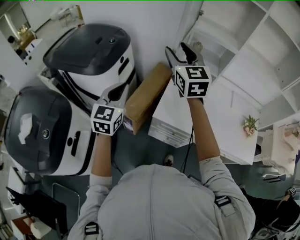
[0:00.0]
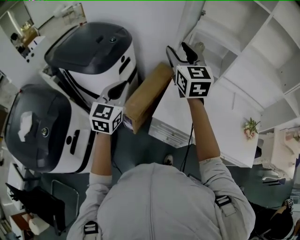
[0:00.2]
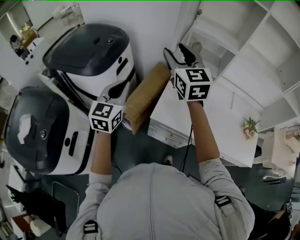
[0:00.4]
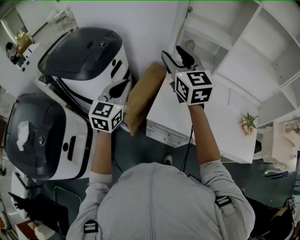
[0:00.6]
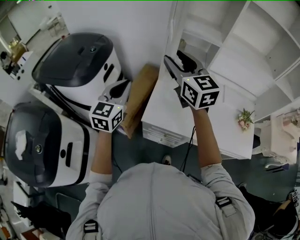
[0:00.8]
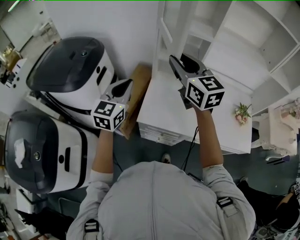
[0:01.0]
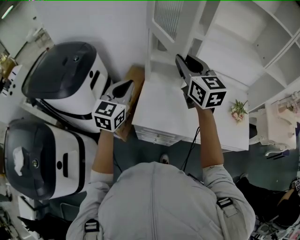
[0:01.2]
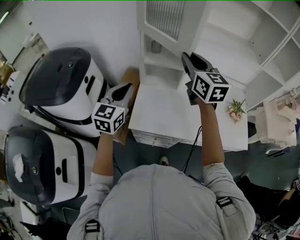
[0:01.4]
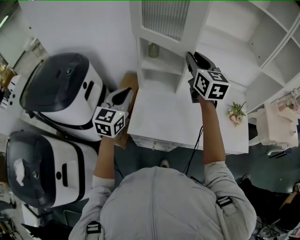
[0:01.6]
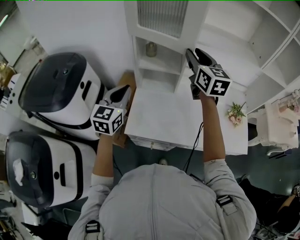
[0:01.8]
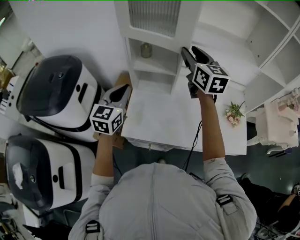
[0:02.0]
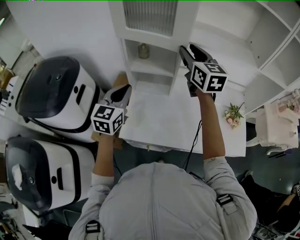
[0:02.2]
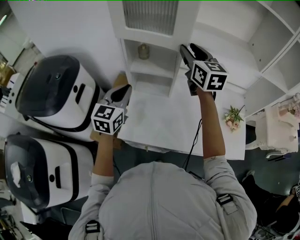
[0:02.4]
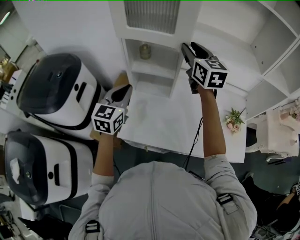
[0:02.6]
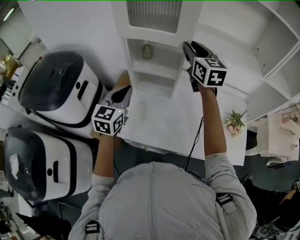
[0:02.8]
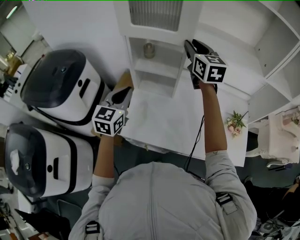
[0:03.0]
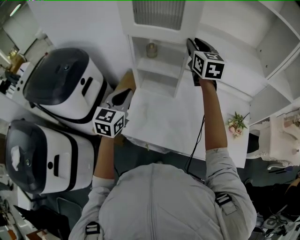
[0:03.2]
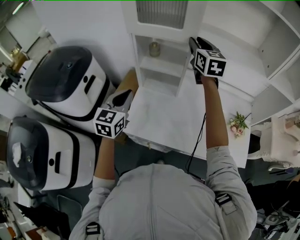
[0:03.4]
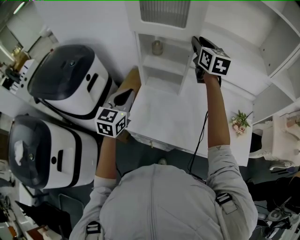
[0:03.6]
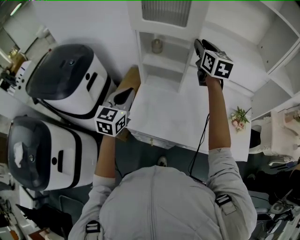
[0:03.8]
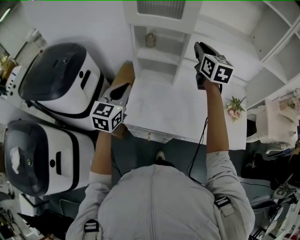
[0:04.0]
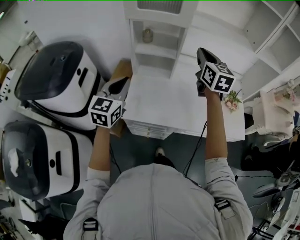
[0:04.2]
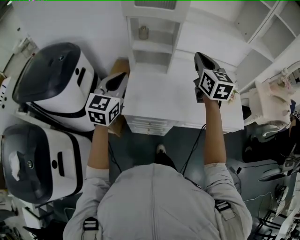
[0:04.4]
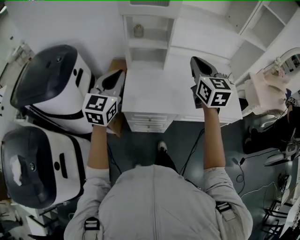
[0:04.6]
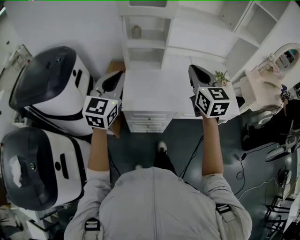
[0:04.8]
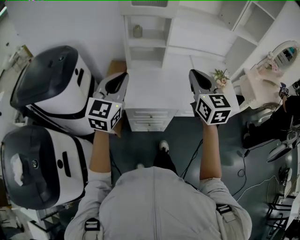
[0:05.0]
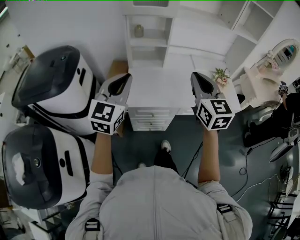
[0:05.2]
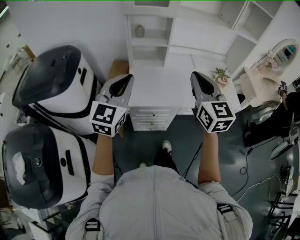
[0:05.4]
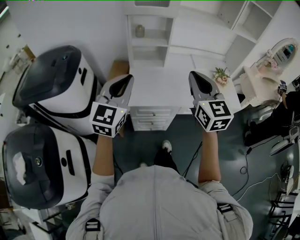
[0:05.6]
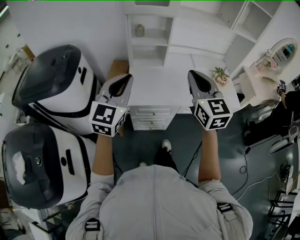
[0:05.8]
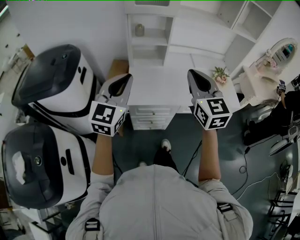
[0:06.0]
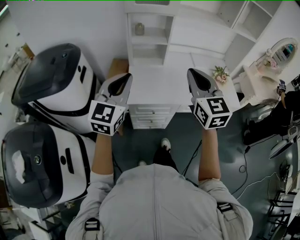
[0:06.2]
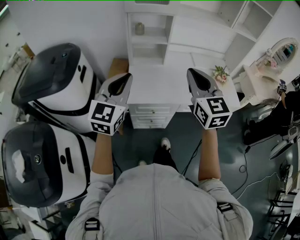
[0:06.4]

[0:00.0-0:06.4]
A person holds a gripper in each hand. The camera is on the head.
0:00.0 to 0:01.6: The left gripper heads to the right and forward, covering roughly 25 cm; the right gripper goes approximately 30 cm to the right, turns by roughly 20 degrees, and closes its fingers.
0:01.6 to 0:03.2: The left gripper changes place by about 5 cm; the right gripper is displaced forward by roughly 10 cm.
0:03.2 to 0:04.8: The left gripper moves backward, approximately 15 cm; the right gripper heads backward, covering some 35 cm, and closes up.
0:04.8 to 0:06.4: The grippers both shift backward by some 10 cm.

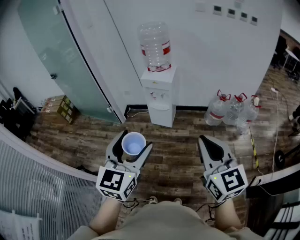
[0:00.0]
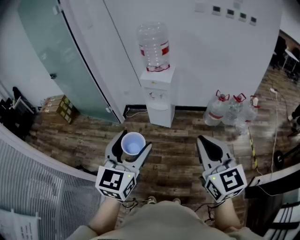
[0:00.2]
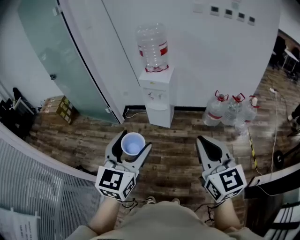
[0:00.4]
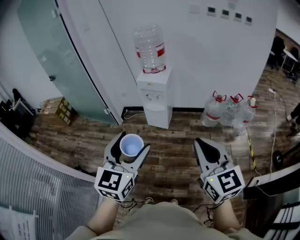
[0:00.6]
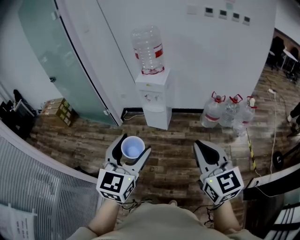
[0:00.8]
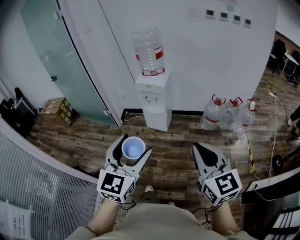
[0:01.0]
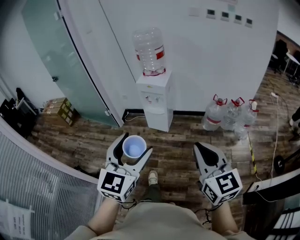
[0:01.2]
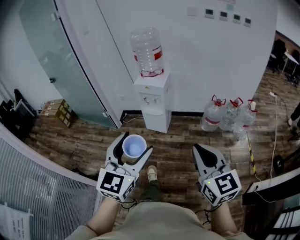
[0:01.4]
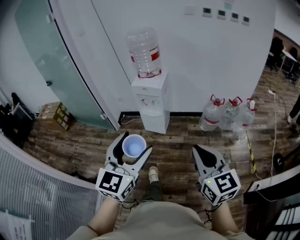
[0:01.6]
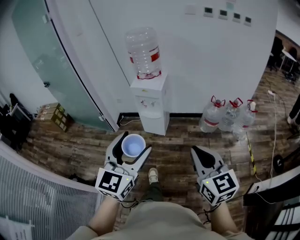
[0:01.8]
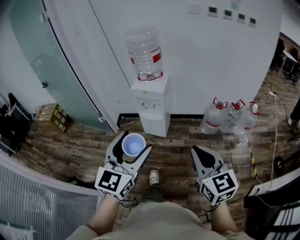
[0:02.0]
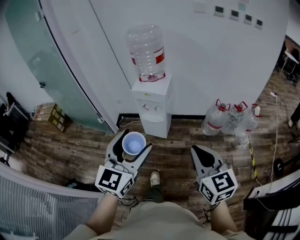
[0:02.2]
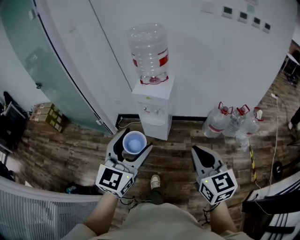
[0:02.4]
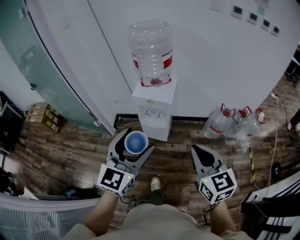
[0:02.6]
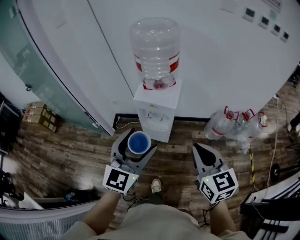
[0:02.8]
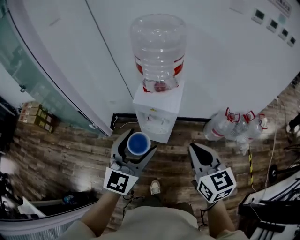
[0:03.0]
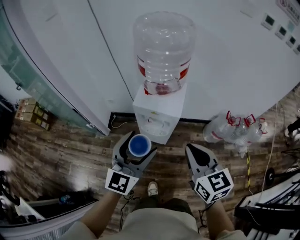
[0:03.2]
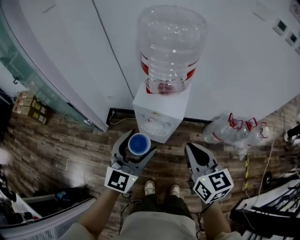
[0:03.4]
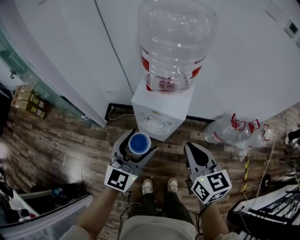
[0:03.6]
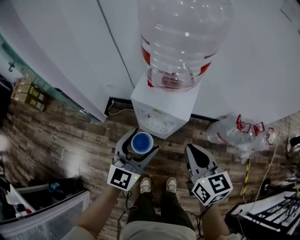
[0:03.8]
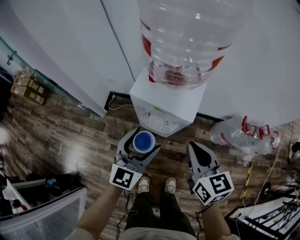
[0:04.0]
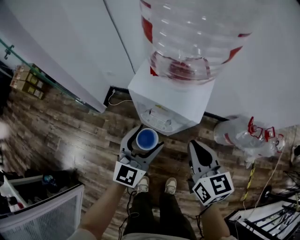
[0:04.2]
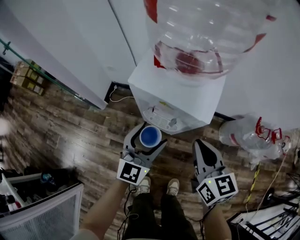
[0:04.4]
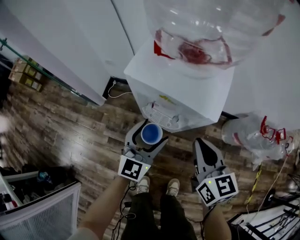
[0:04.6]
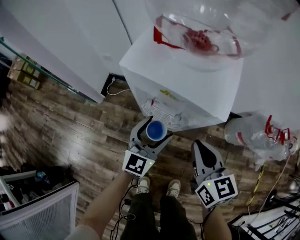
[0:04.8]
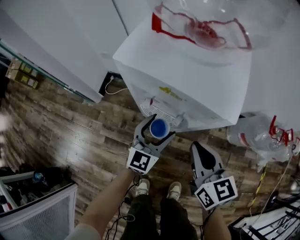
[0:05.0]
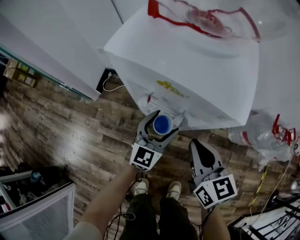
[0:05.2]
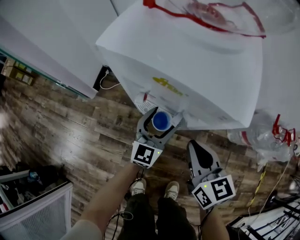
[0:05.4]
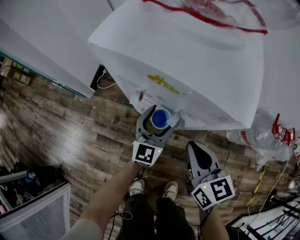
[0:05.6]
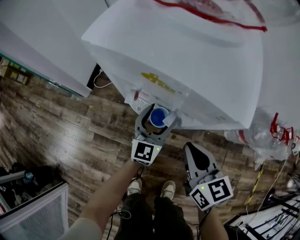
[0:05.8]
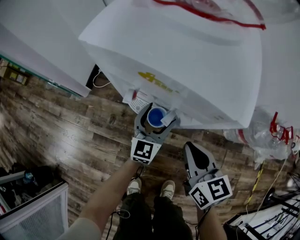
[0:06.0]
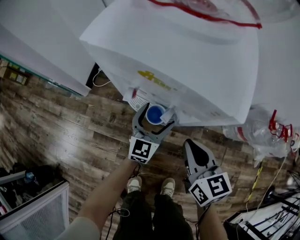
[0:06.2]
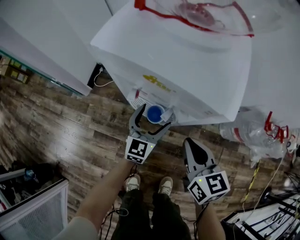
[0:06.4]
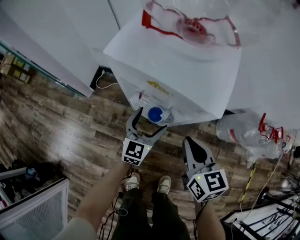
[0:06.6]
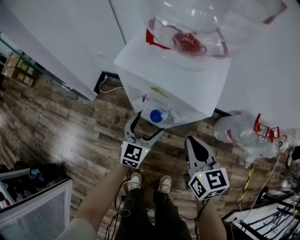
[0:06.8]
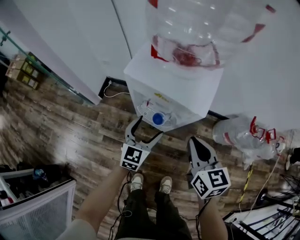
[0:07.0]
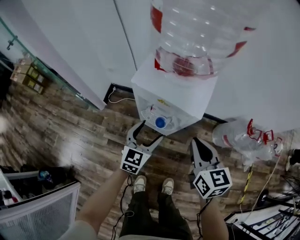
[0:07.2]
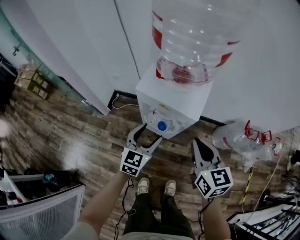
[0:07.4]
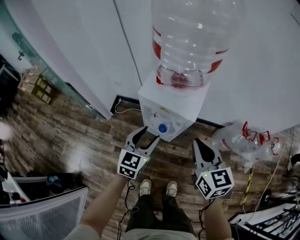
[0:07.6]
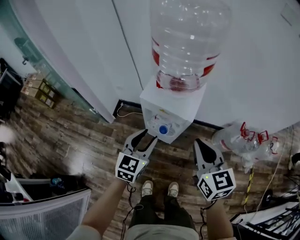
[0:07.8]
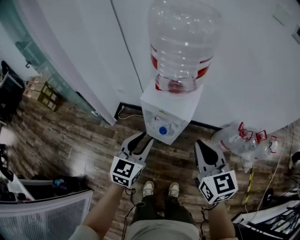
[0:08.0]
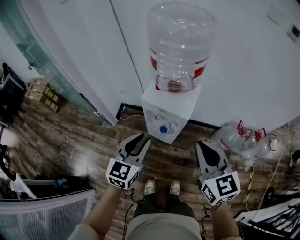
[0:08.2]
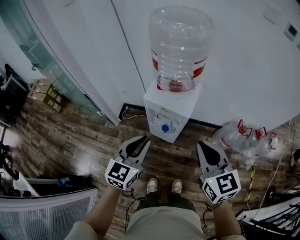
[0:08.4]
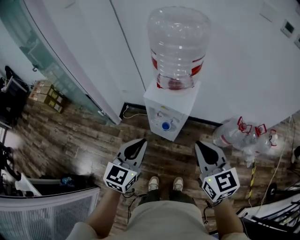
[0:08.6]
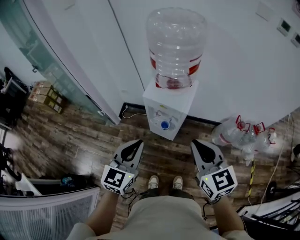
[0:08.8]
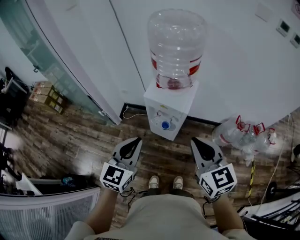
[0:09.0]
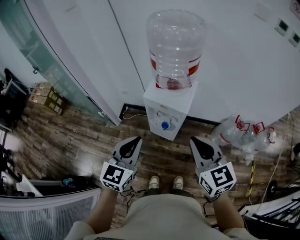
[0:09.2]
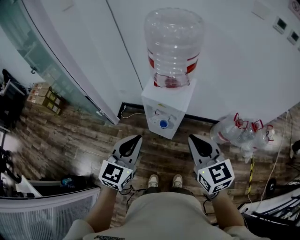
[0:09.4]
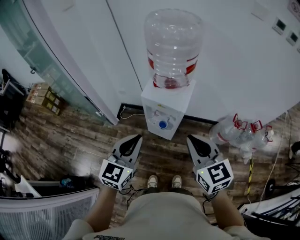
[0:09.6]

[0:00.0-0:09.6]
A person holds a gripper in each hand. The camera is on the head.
0:00.0 to 0:01.6: The left gripper goes roughly 10 cm to the right; the right gripper moves to the right and downward, about 10 cm.
0:01.6 to 0:03.2: The pair of grippers is taken forward, some 50 cm.
0:03.2 to 0:04.8: The right gripper moves downward and forward, approximately 40 cm. The left gripper is displaced downward by roughly 40 cm.
0:04.8 to 0:06.4: The grippers both shift downward by approximately 10 cm.
0:06.4 to 0:08.0: The two grippers go some 40 cm upward. The left gripper closes its fingers.
0:08.0 to 0:09.6: The left gripper shifts roughly 15 cm upward and backward; the right gripper shifts about 10 cm backward and upward.

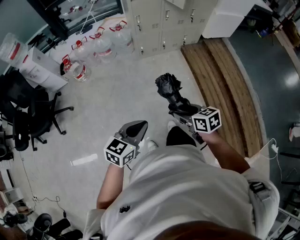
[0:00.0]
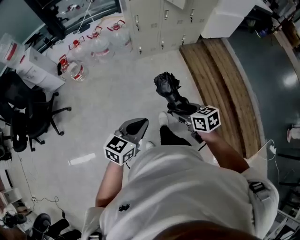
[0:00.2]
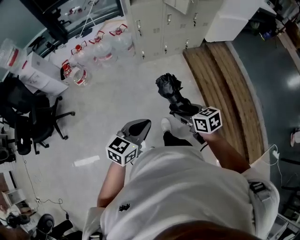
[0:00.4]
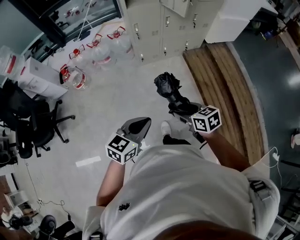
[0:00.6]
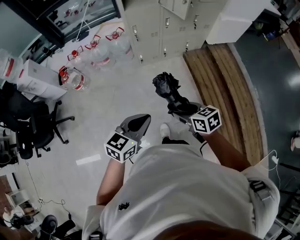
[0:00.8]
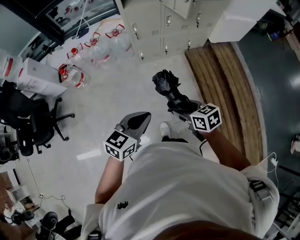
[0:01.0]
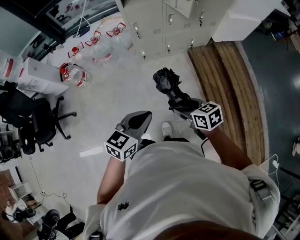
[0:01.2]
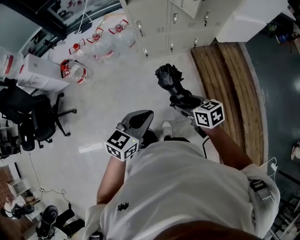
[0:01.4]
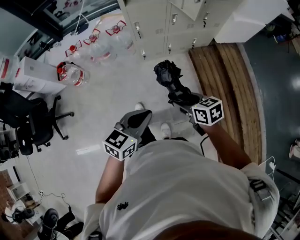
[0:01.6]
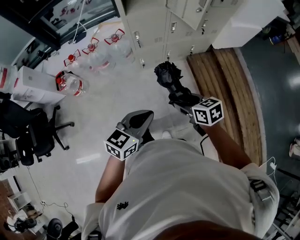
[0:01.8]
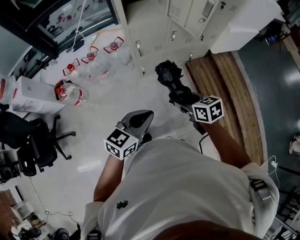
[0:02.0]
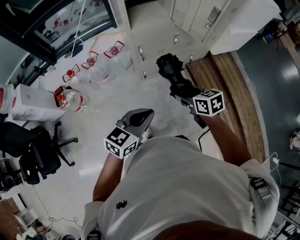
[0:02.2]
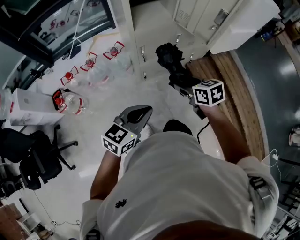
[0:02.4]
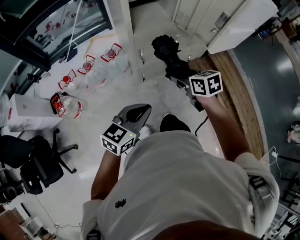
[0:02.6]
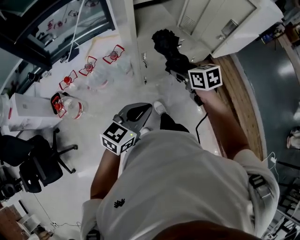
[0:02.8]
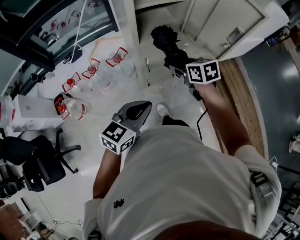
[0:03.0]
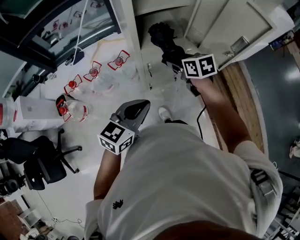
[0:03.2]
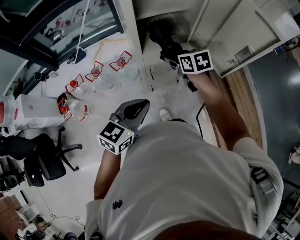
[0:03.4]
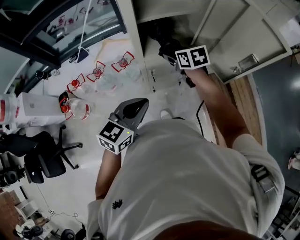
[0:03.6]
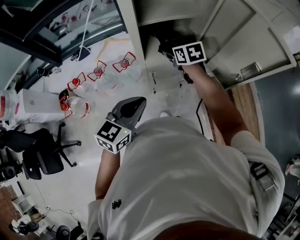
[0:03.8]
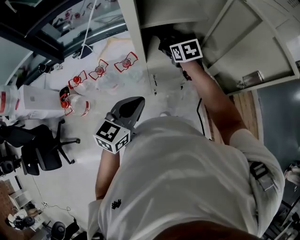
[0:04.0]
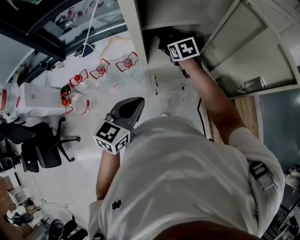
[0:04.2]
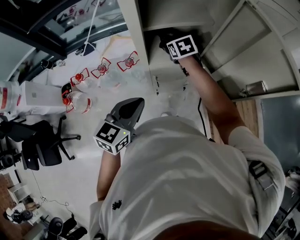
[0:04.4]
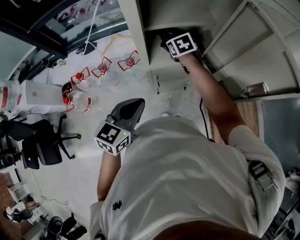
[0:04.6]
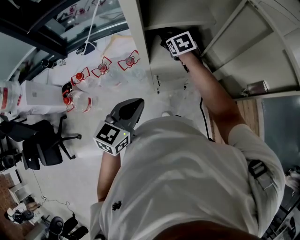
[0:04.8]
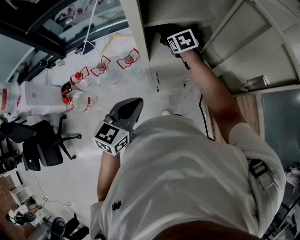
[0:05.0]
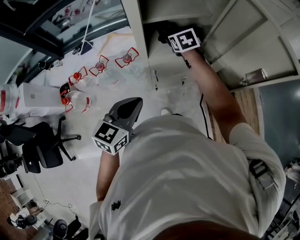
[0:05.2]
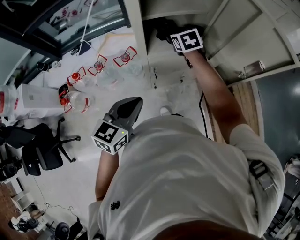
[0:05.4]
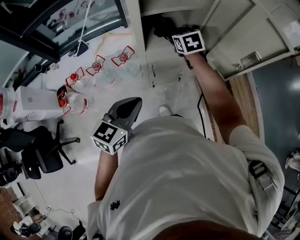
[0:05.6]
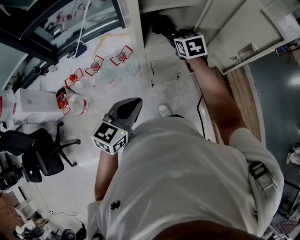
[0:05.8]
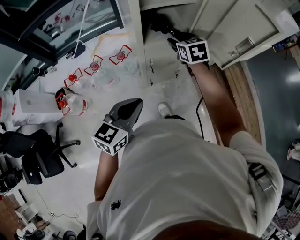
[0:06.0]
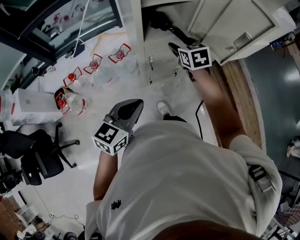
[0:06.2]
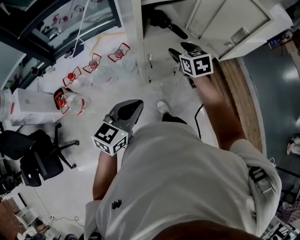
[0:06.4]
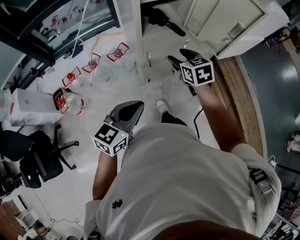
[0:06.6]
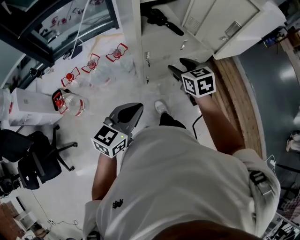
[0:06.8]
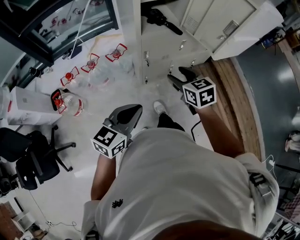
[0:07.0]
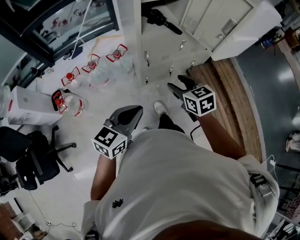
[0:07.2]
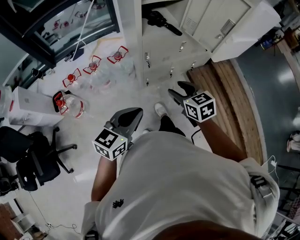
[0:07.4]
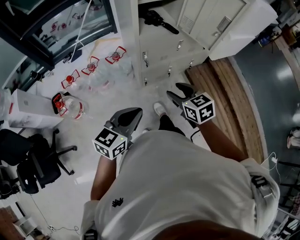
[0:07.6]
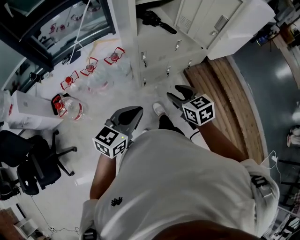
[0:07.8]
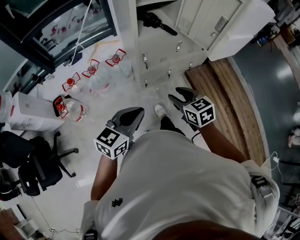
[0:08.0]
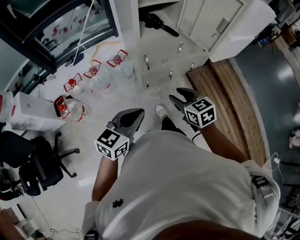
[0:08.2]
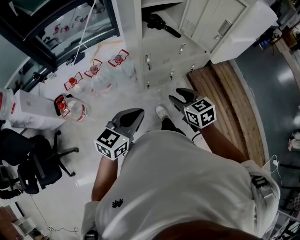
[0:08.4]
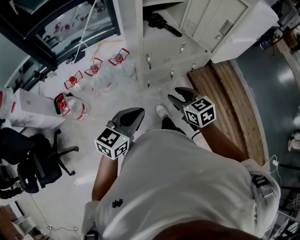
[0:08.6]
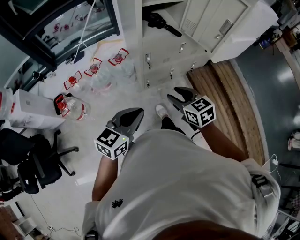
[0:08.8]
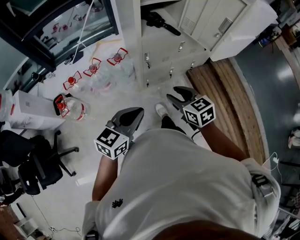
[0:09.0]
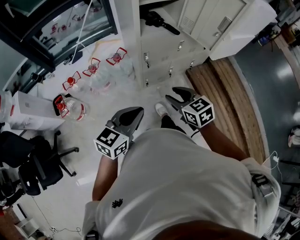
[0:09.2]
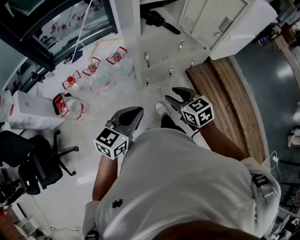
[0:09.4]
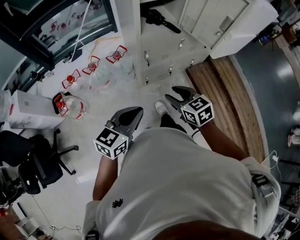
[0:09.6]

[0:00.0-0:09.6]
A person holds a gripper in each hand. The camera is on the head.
0:00.0 to 0:01.6: The two grippers go some 30 cm forward.
0:01.6 to 0:03.2: The right gripper shifts approximately 50 cm forward. The left gripper shifts roughly 35 cm forward and to the left.
0:03.2 to 0:04.8: The right gripper goes about 20 cm forward, and changes its angle by roughly 20 degrees; the left gripper moves forward, some 10 cm.
0:04.8 to 0:06.4: The grippers both shift backward by about 20 cm.
0:06.4 to 0:08.0: The right gripper travels backward by some 25 cm. The left gripper moves backward, roughly 10 cm.
0:08.0 to 0:09.6: The grippers stay close to where they were, moving slightly.
